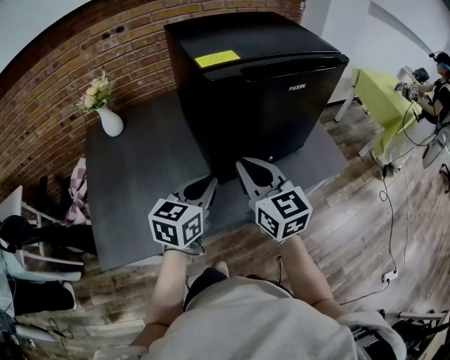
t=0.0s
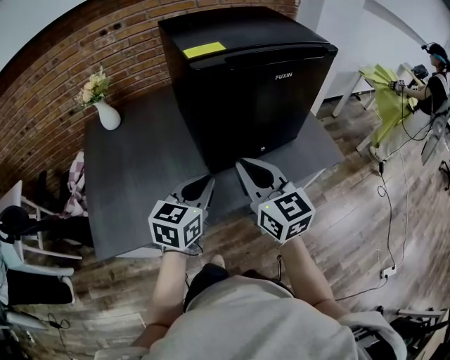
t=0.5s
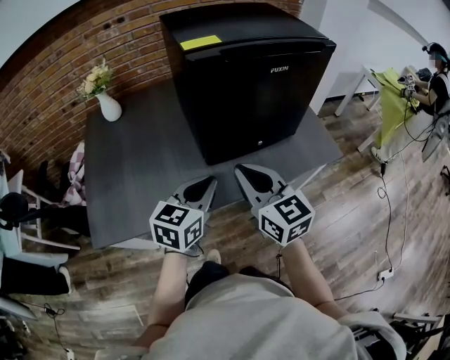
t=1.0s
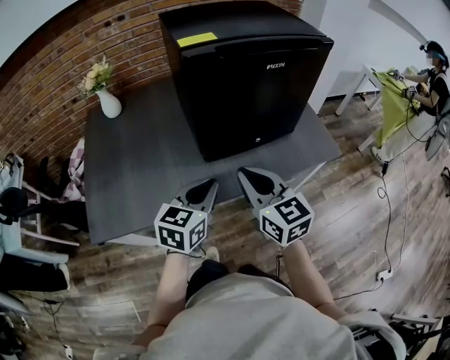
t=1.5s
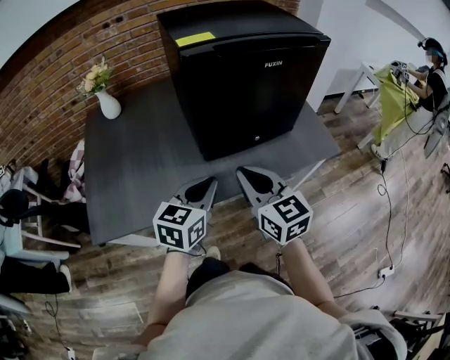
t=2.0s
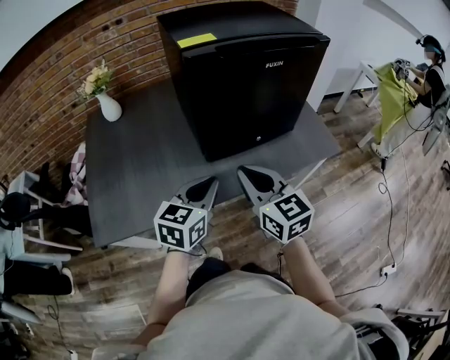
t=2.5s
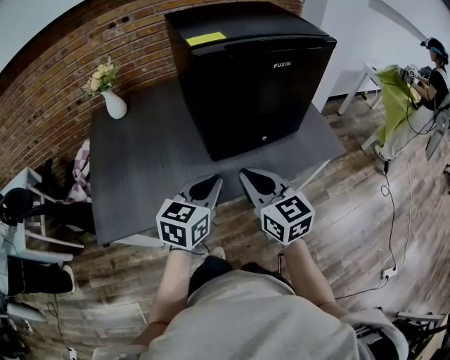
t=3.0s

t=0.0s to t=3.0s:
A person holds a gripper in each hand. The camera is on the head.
t=0.0s to t=1.5s: The two grippers go roughly 10 cm backward and to the right.
t=1.5s to t=3.0s: There are only small adjustments of the grippers.

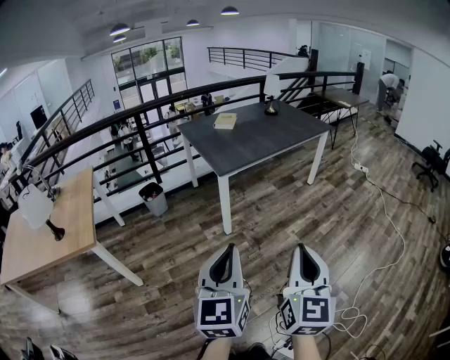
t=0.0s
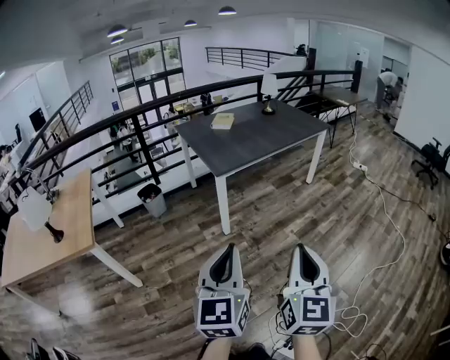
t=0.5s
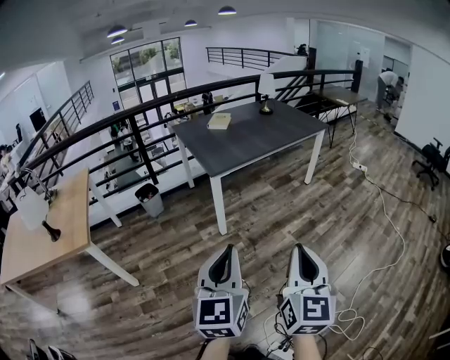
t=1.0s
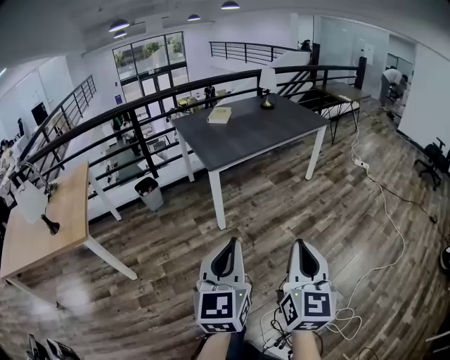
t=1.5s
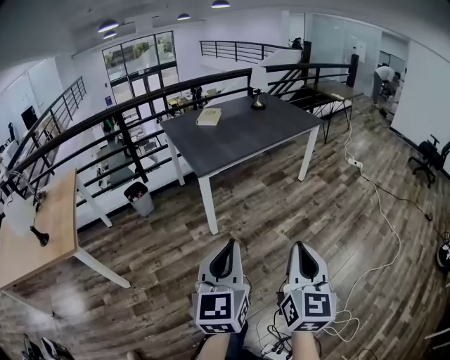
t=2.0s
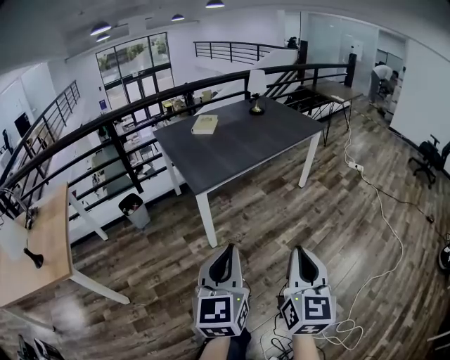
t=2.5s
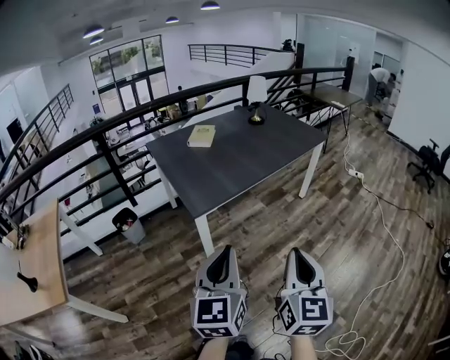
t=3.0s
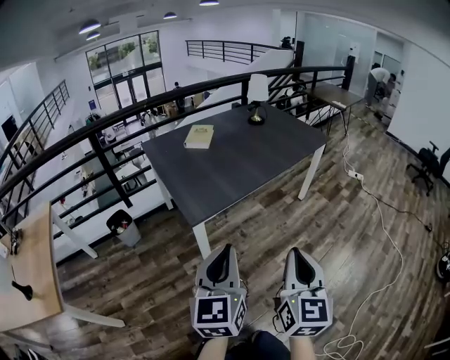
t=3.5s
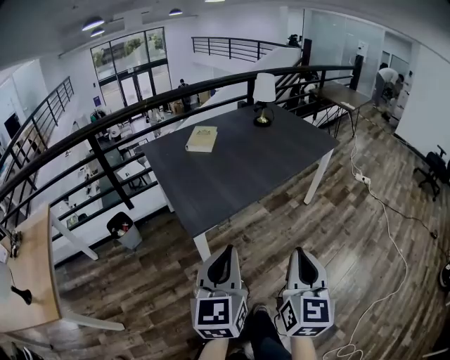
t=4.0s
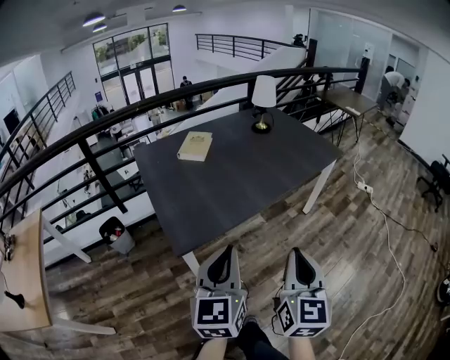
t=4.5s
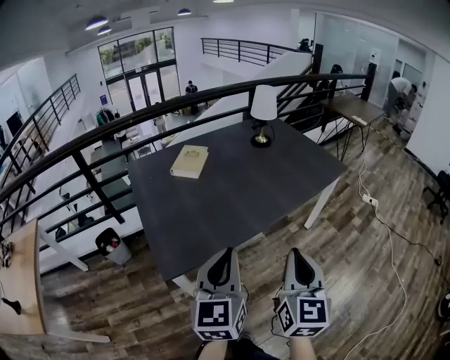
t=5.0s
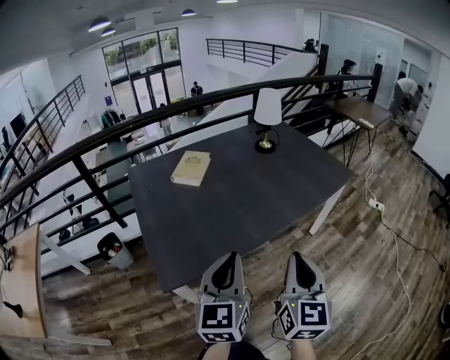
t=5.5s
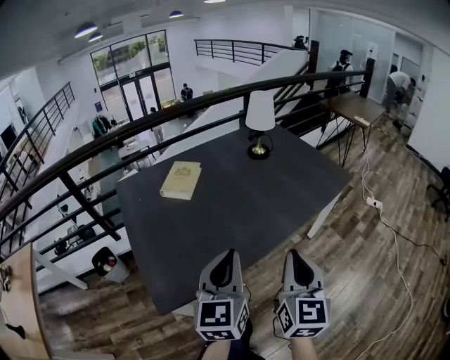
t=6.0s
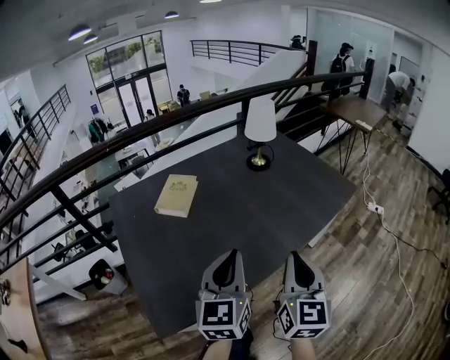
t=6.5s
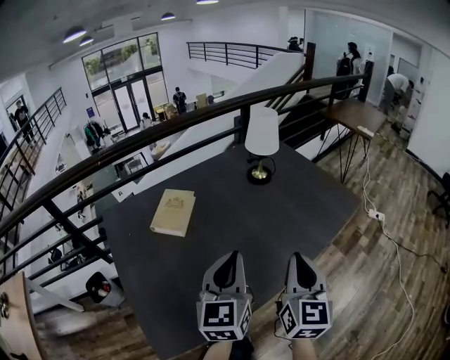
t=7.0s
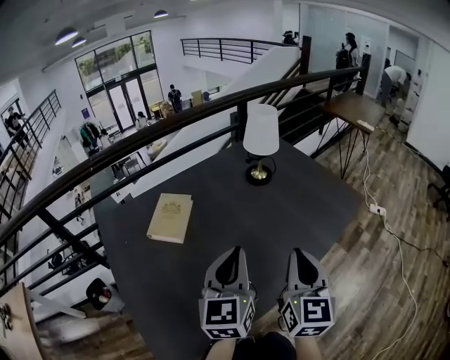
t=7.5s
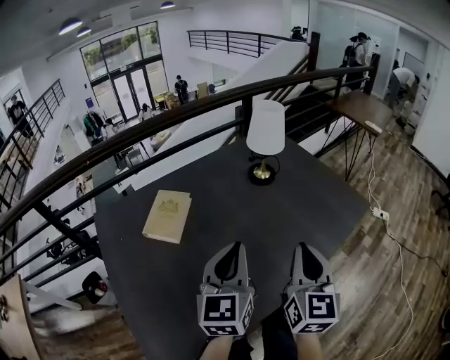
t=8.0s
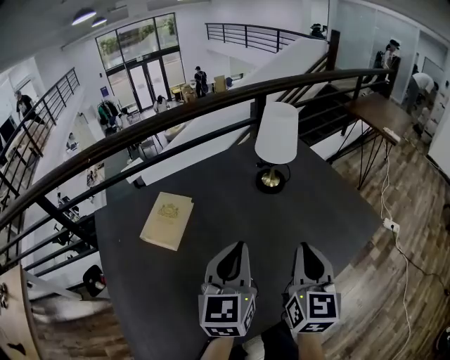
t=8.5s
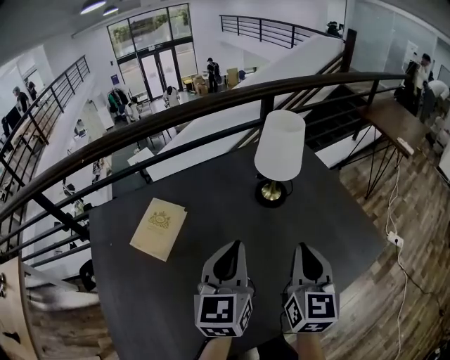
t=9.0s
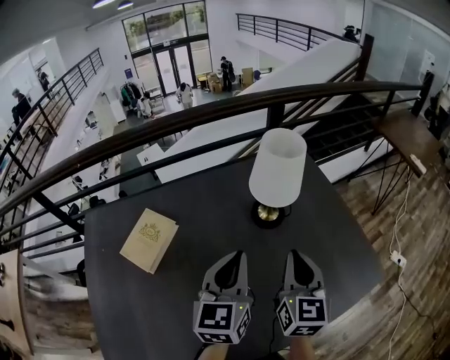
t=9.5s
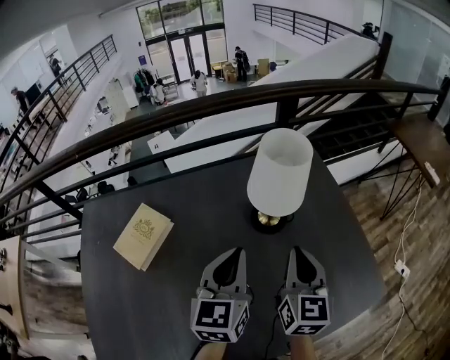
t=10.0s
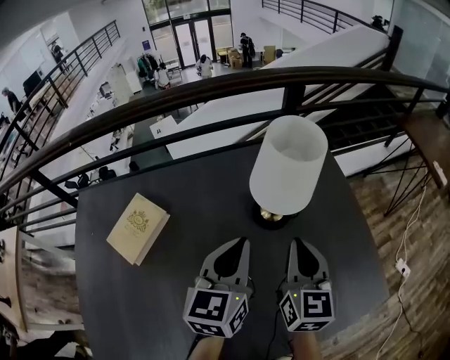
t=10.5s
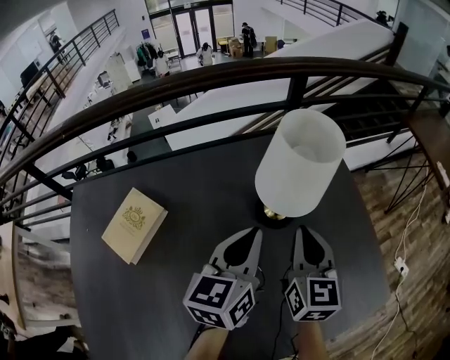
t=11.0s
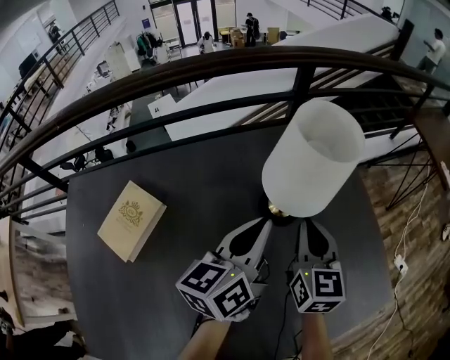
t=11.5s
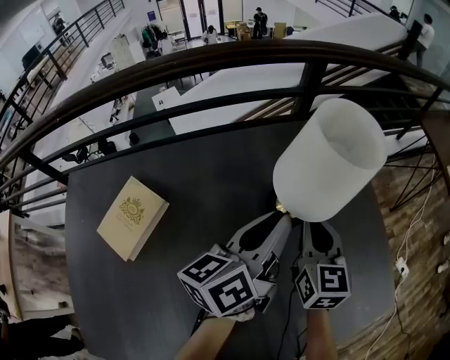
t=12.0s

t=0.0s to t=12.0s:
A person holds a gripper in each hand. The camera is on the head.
t=0.0s to t=2.0s: The two grippers go approximately 10 cm to the right and forward.
t=2.0s to t=4.0s: Both grippers move forward, some 35 cm.
t=4.0s to t=6.0s: The grippers both shift forward by about 35 cm.
t=6.0s to t=8.0s: The two grippers go approximately 25 cm forward.
t=8.0s to t=10.0s: The two grippers go about 30 cm forward. The right gripper rotates approximately 20 degrees.
t=10.0s to t=12.0s: The left gripper travels forward by roughly 10 cm, and turns by some 40 degrees. Meanwhile the right gripper heads forward and downward, covering some 15 cm.

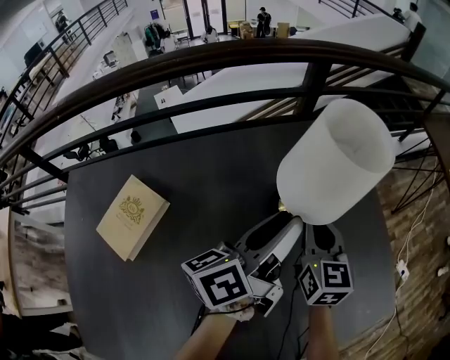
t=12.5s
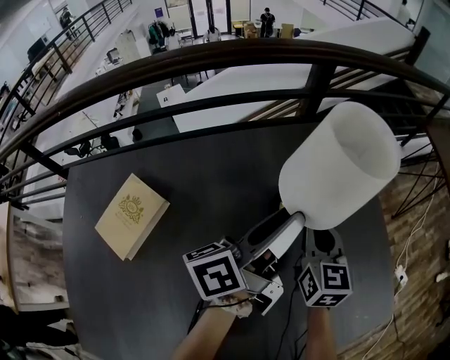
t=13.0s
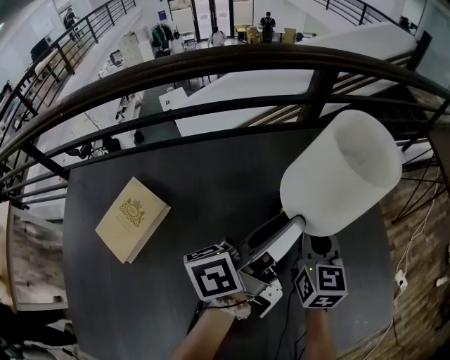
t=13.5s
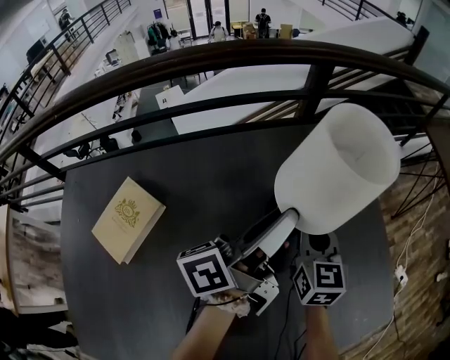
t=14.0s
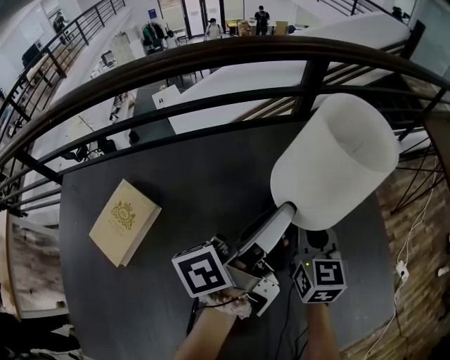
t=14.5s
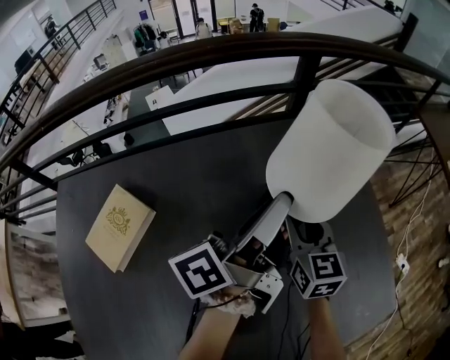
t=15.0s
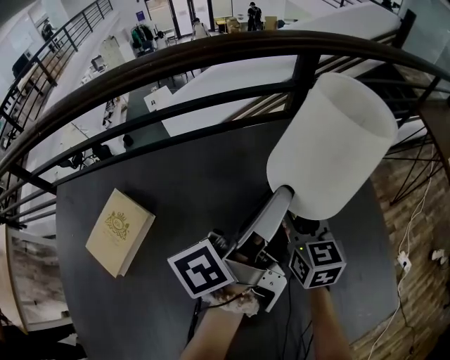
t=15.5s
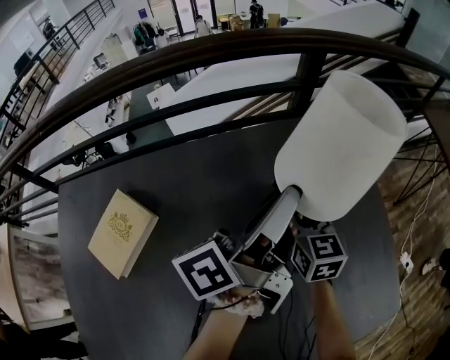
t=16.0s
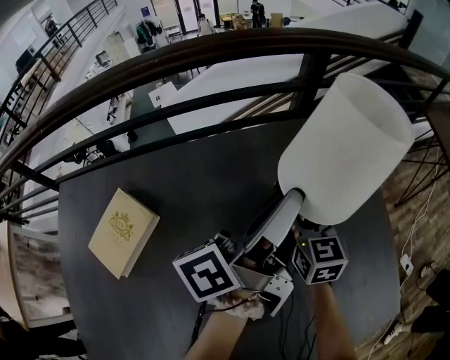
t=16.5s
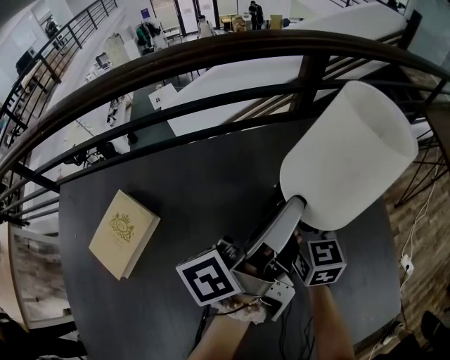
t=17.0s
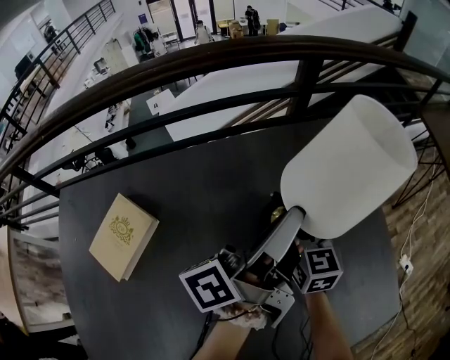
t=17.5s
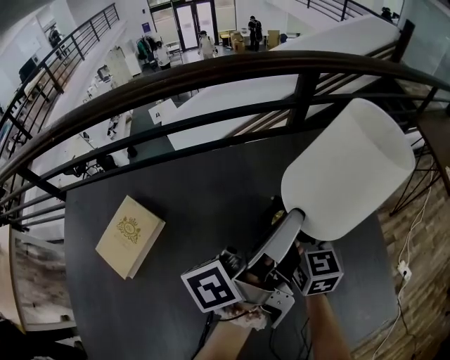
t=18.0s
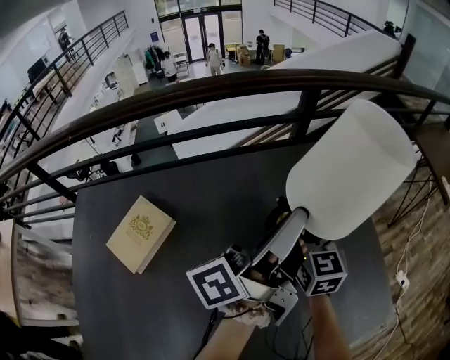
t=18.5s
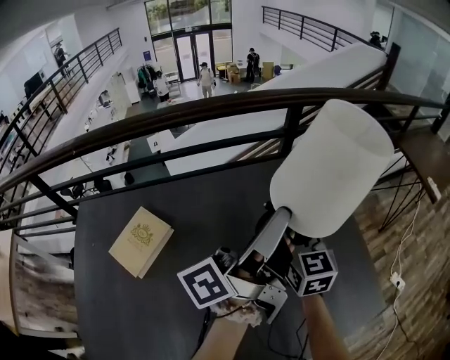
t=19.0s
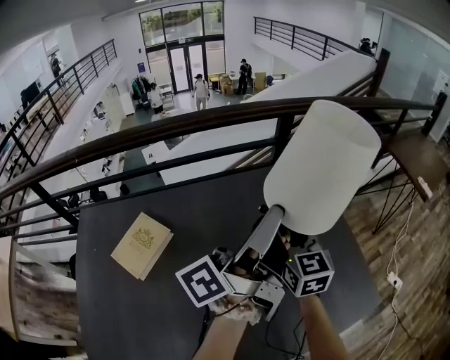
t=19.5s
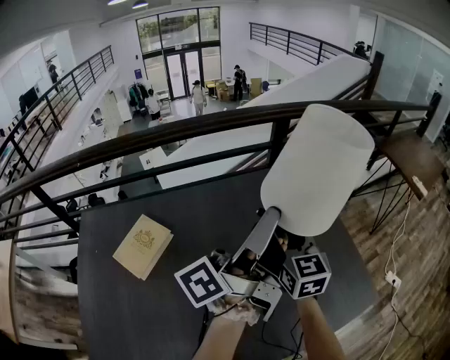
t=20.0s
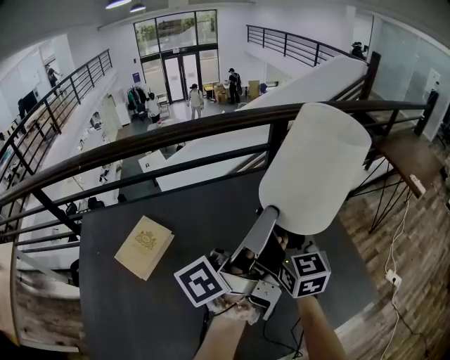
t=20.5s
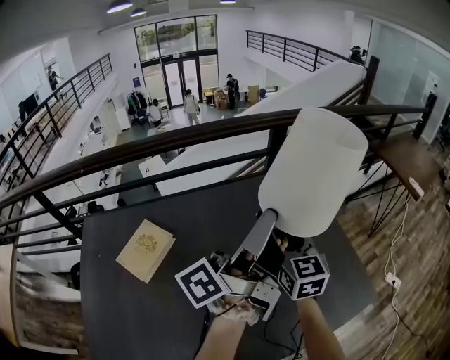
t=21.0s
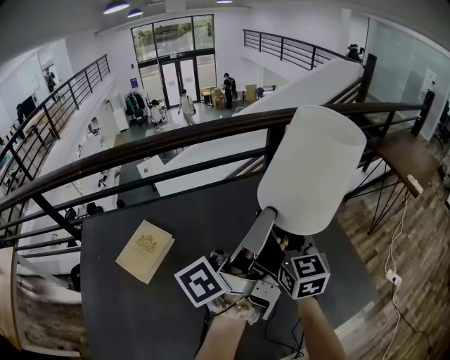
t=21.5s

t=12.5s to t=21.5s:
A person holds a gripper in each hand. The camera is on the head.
t=12.5s to t=14.5s: There are only small adjustments of the grippers.
t=14.5s to t=17.0s: The right gripper changes place by roughly 5 cm, and opens up.
t=17.0s to t=19.5s: Both grippers move upward and backward, about 20 cm.
t=19.5s to t=21.5s: The grippers make only small movements.

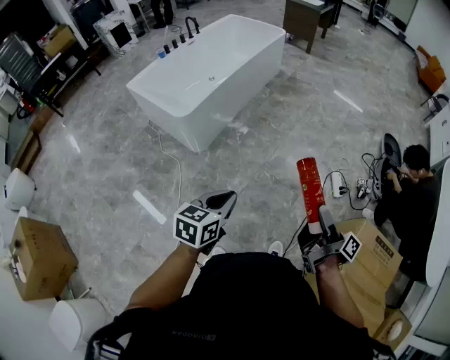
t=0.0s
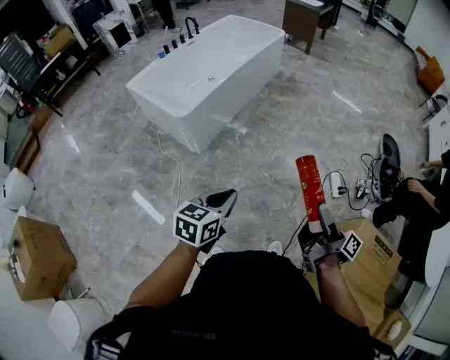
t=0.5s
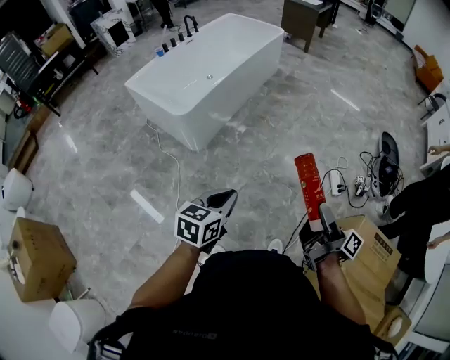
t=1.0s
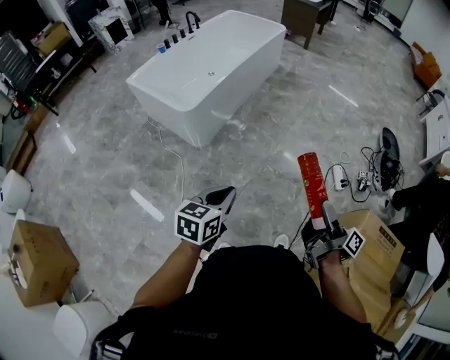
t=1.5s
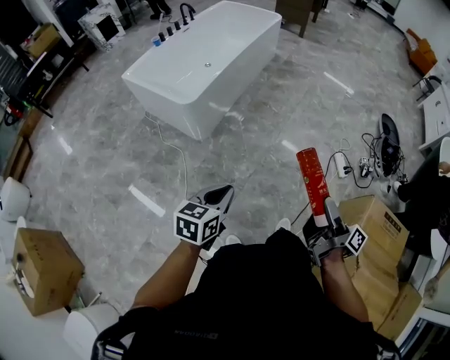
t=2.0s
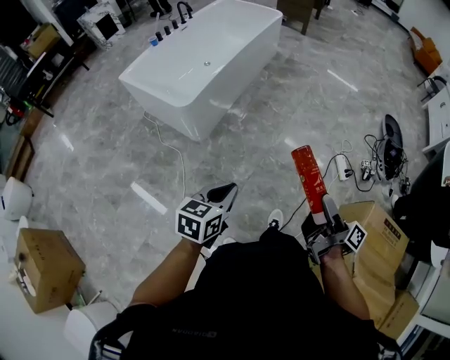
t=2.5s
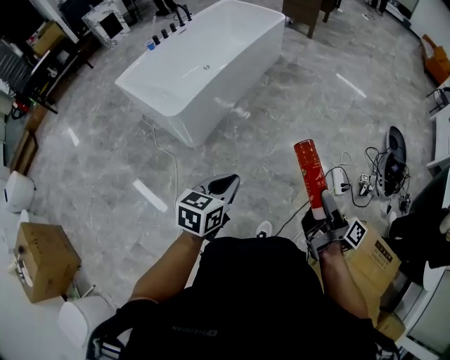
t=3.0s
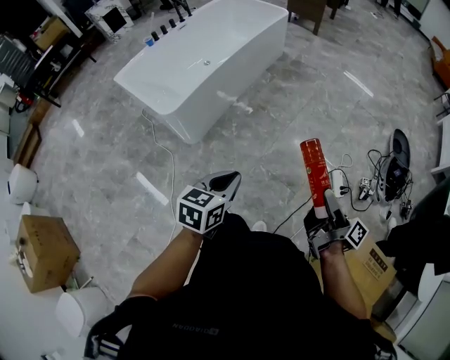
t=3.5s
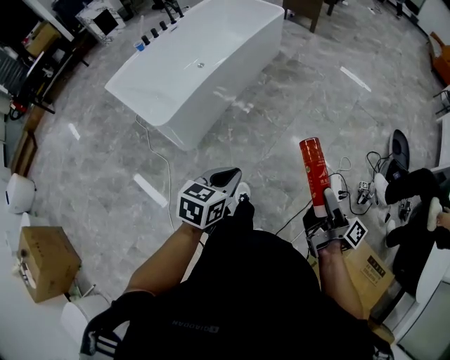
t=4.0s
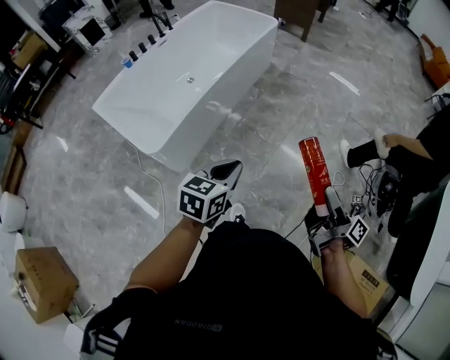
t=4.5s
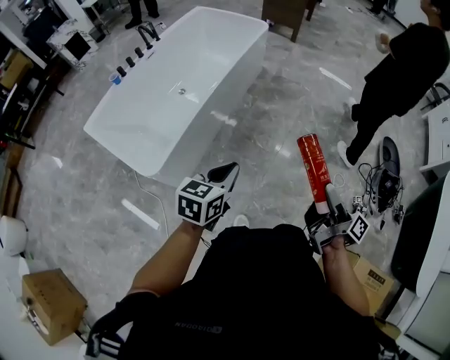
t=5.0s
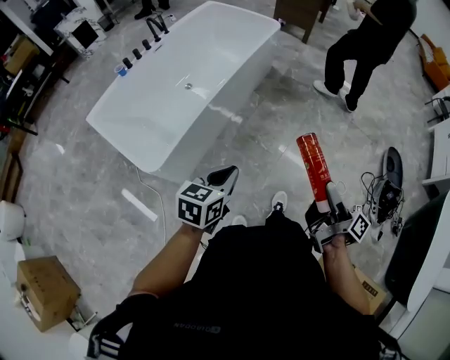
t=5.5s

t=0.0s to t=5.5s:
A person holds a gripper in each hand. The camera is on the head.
t=0.0s to t=2.0s: The left gripper changes place by roughly 10 cm.
t=2.0s to t=3.5s: The left gripper shifts by roughly 25 cm.
t=3.5s to t=5.5s: The left gripper changes place by approximately 35 cm.
